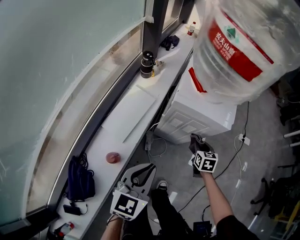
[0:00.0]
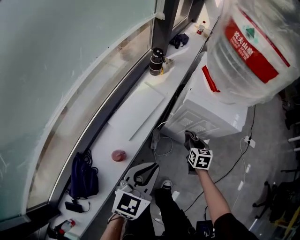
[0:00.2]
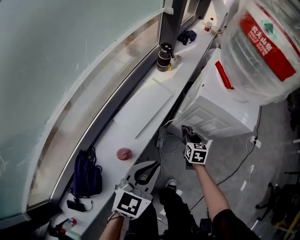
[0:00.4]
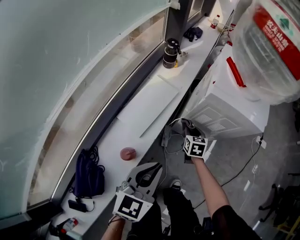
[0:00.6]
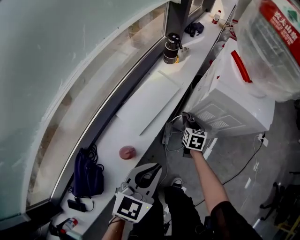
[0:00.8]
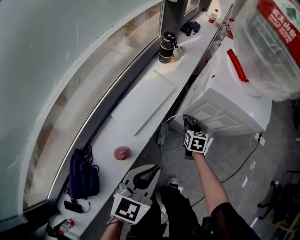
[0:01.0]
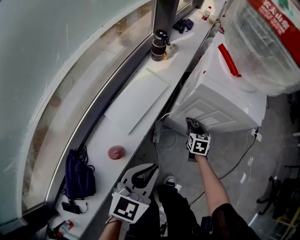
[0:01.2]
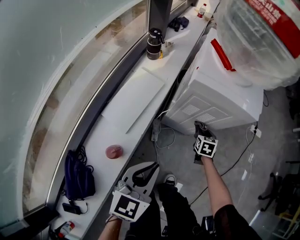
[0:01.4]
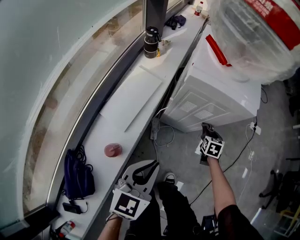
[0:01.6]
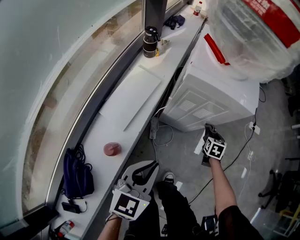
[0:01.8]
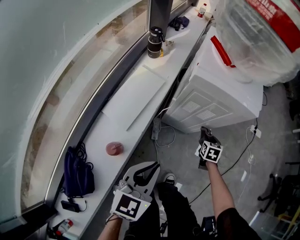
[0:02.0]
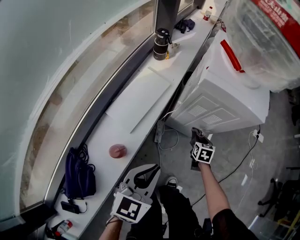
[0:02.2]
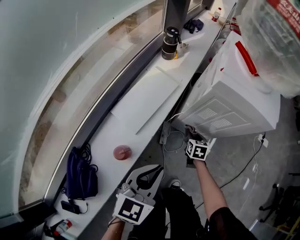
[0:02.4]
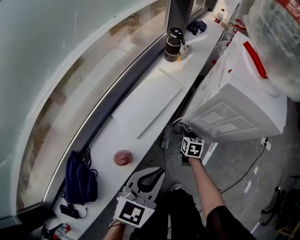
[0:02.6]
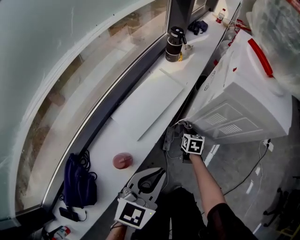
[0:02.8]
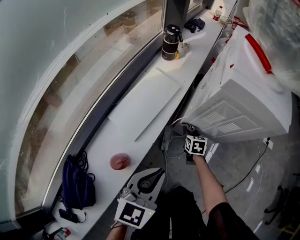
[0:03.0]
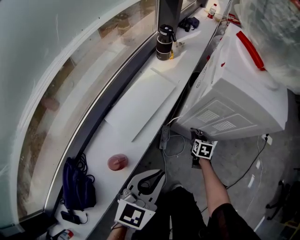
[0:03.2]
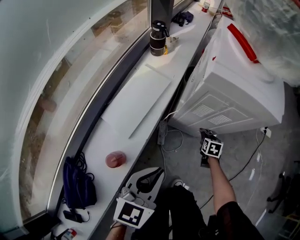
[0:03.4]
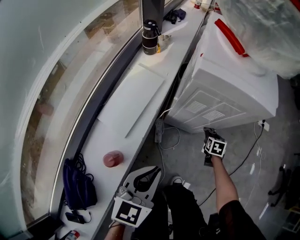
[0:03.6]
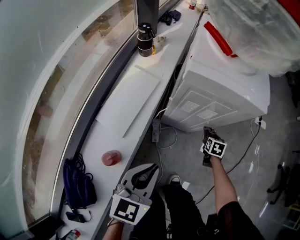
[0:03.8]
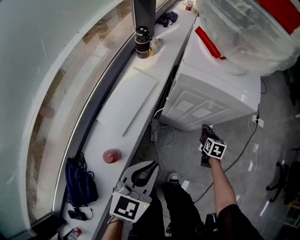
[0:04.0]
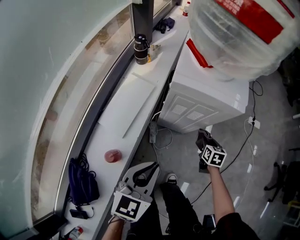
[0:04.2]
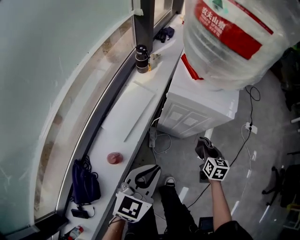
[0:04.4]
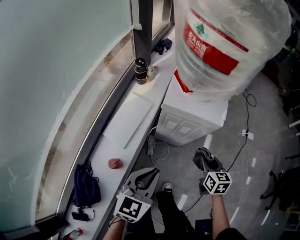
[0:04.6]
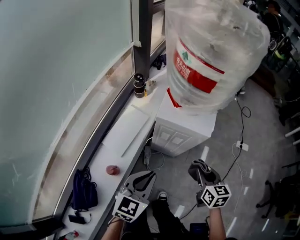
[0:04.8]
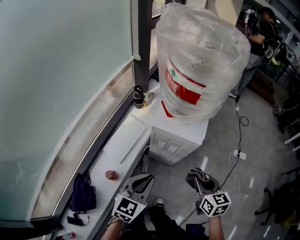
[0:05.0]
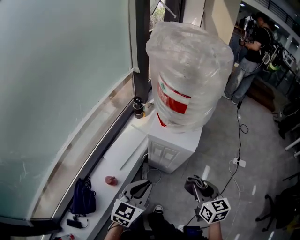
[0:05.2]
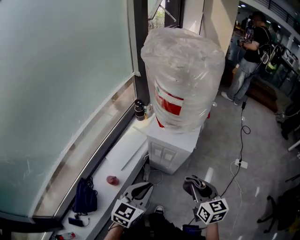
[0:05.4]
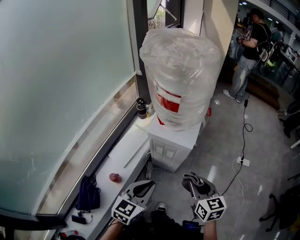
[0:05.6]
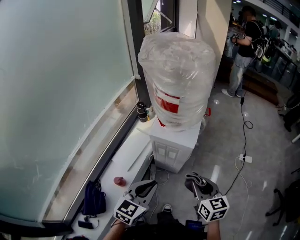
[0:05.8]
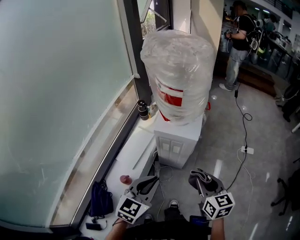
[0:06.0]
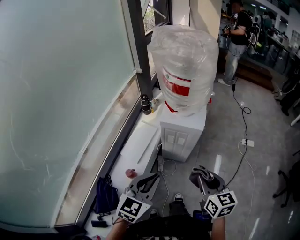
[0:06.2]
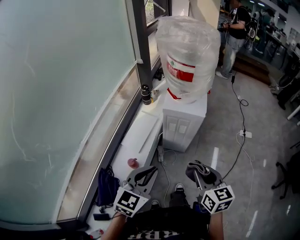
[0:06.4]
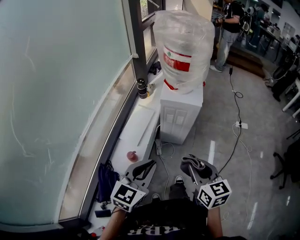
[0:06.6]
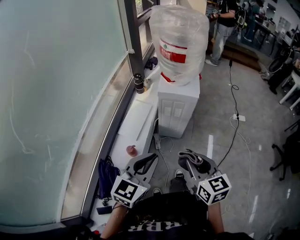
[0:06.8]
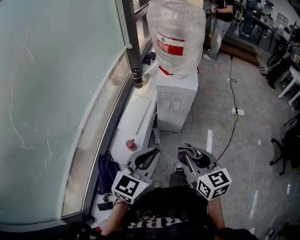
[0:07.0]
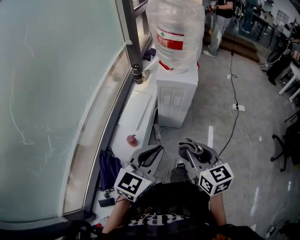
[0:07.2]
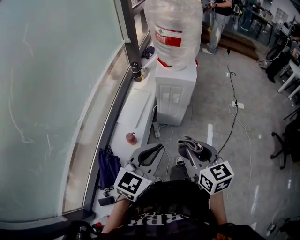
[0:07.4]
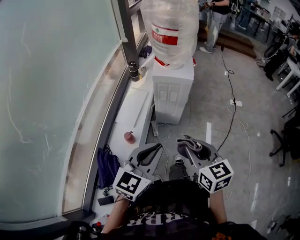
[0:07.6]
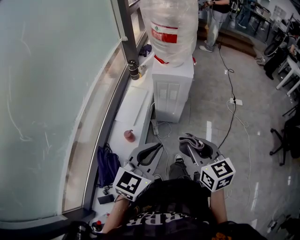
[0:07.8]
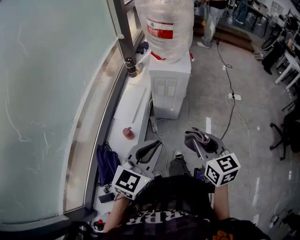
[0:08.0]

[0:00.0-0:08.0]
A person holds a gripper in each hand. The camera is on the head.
0:00.0 to 0:01.6: Both grippers travel together downward, approximately 10 cm. The right gripper goes to the left and returns, some 20 cm each way.
0:01.6 to 0:03.2: The left gripper shifts approximately 10 cm downward, while the right gripper is displaced downward and to the left by some 20 cm.
0:03.2 to 0:04.8: The left gripper is displaced upward by roughly 25 cm, while the right gripper moves upward, approximately 50 cm, and swivels approximately 30 degrees.
0:04.8 to 0:06.4: Both grippers move backward and upward, approximately 25 cm.
0:06.4 to 0:08.0: Both grippers travel together backward, roughly 10 cm.

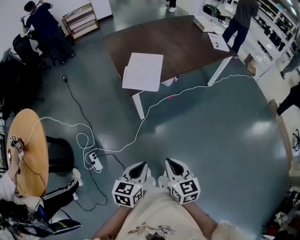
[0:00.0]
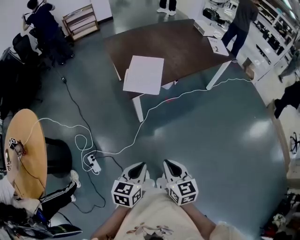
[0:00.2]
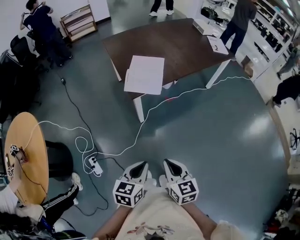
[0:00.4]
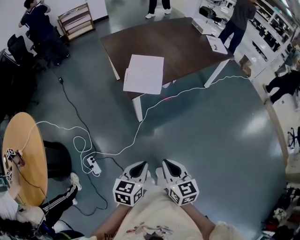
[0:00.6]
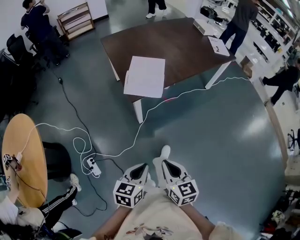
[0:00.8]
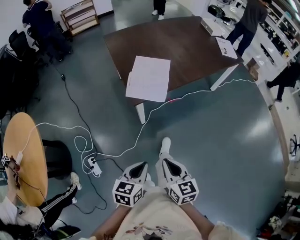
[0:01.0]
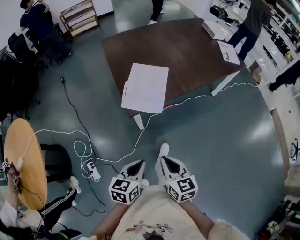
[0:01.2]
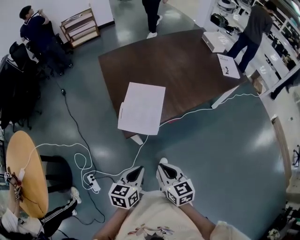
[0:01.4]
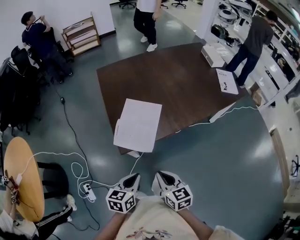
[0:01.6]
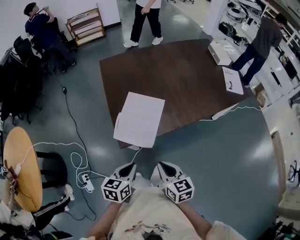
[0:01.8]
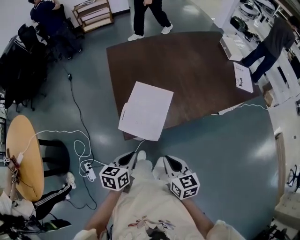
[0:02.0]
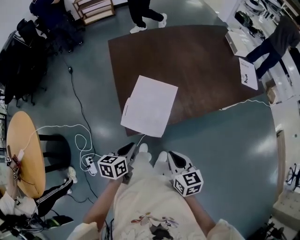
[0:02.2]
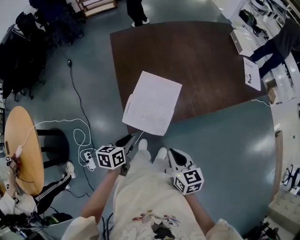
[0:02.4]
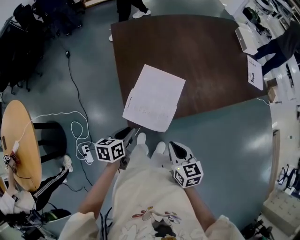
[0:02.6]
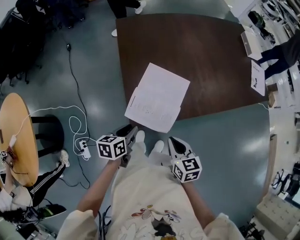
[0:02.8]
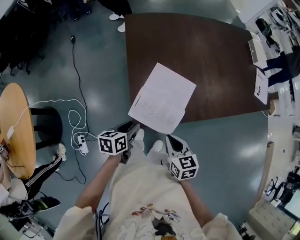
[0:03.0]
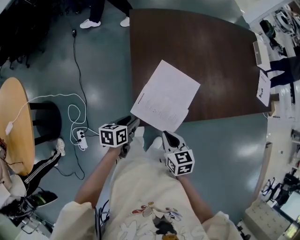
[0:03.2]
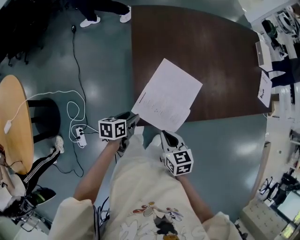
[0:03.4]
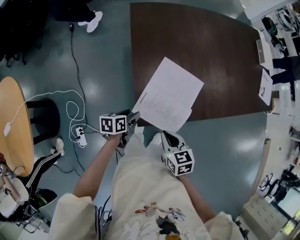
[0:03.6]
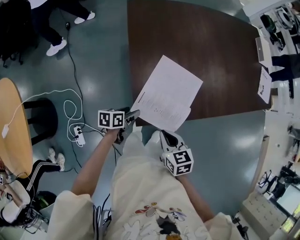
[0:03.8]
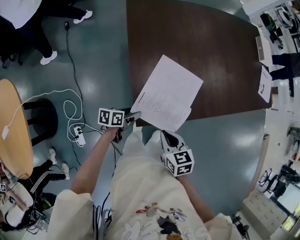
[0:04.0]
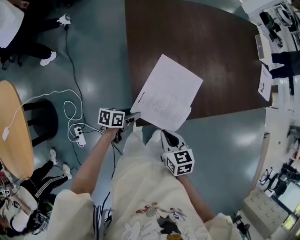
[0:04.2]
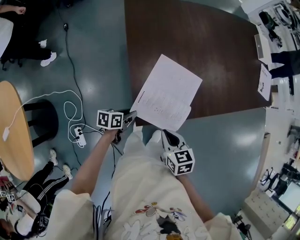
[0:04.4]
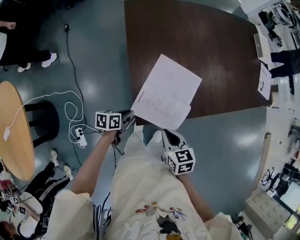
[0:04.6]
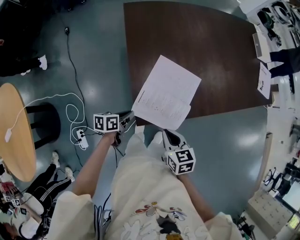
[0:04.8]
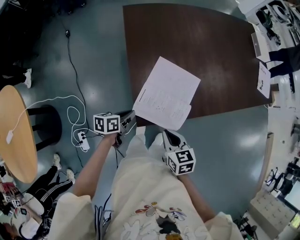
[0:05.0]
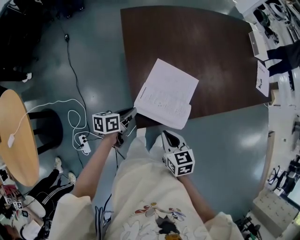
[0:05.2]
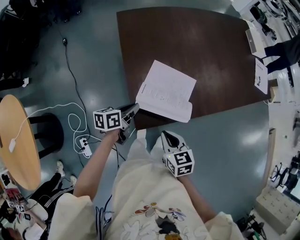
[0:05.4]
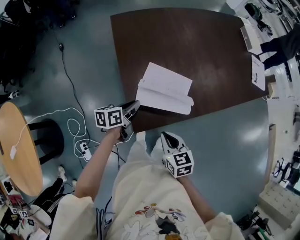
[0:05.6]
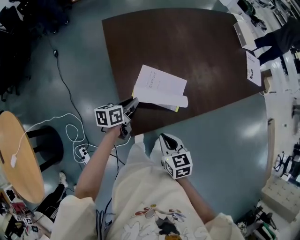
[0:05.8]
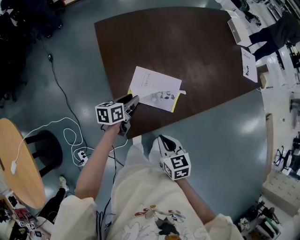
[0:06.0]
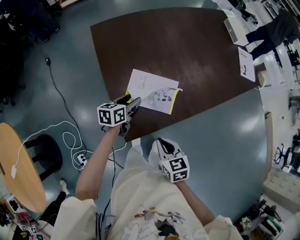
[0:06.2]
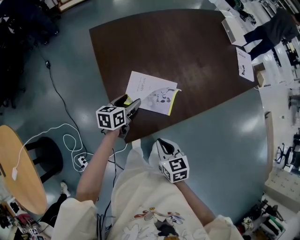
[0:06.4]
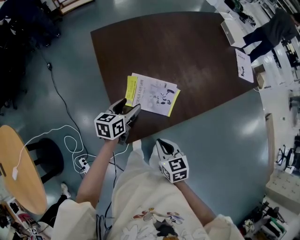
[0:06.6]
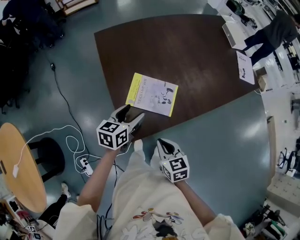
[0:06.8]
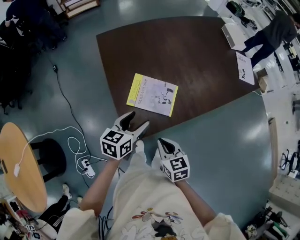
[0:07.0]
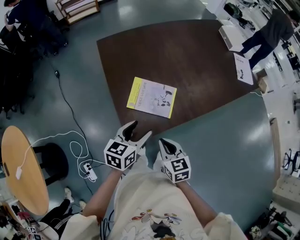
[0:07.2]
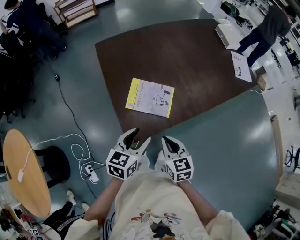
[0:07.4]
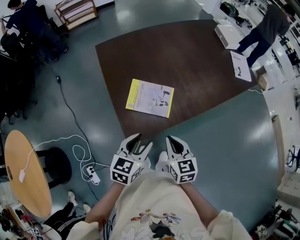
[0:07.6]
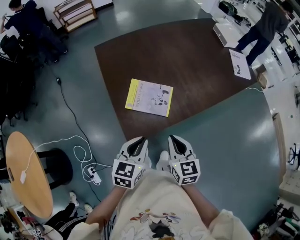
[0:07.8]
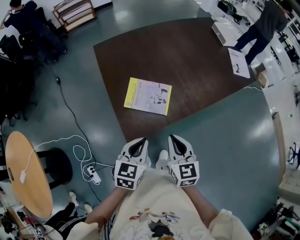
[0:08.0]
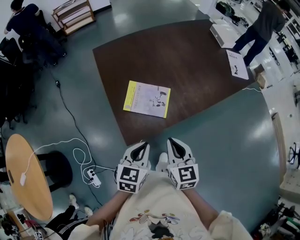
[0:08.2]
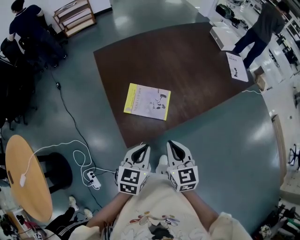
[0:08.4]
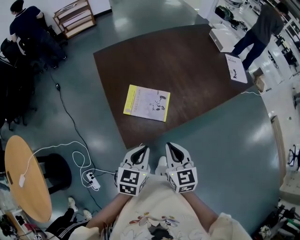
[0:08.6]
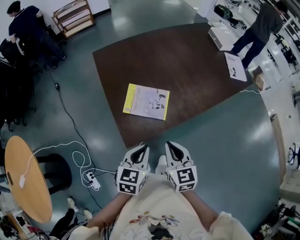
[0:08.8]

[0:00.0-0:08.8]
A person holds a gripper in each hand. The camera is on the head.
0:00.0 to 0:01.4: The two grippers go roughly 30 cm forward.
0:01.4 to 0:03.0: The left gripper moves forward, downward and to the left, approximately 30 cm, changes its angle by some 20 degrees, and opens up, while the right gripper is displaced forward by some 20 cm.
0:03.0 to 0:04.4: The right gripper changes place by approximately 5 cm. Meanwhile the left gripper goes about 10 cm downward, and opens, then closes again.
0:04.4 to 0:05.8: The left gripper is displaced forward and upward by some 15 cm.
0:05.8 to 0:07.4: The left gripper shifts about 20 cm upward, backward and to the right, rotates roughly 30 degrees, and opens its fingers, while the right gripper moves upward and to the right, approximately 10 cm.
0:07.4 to 0:08.8: The left gripper goes some 5 cm backward, and closes up; the right gripper travels upward by some 5 cm.

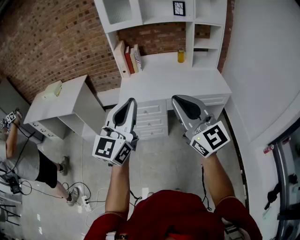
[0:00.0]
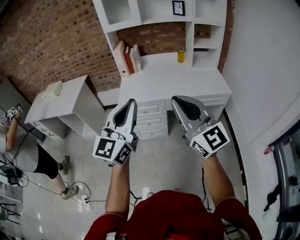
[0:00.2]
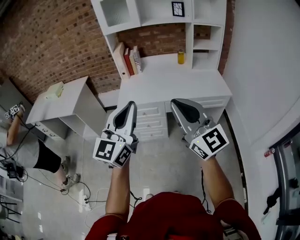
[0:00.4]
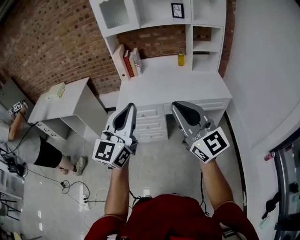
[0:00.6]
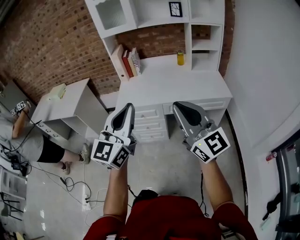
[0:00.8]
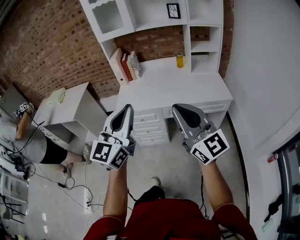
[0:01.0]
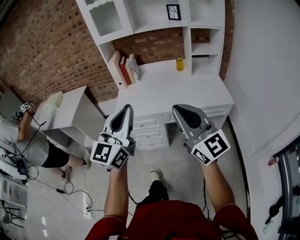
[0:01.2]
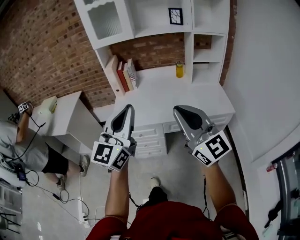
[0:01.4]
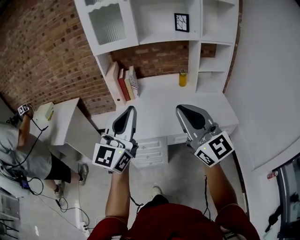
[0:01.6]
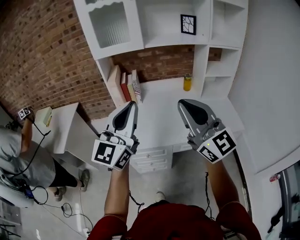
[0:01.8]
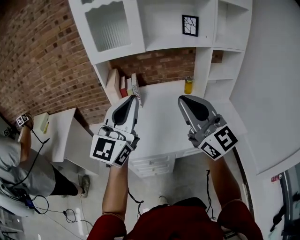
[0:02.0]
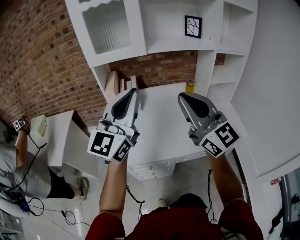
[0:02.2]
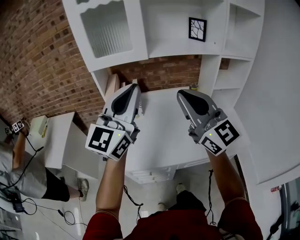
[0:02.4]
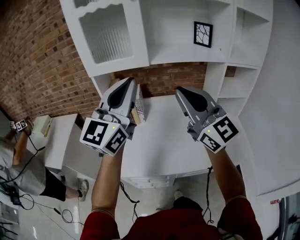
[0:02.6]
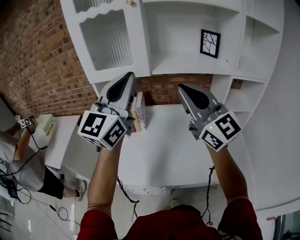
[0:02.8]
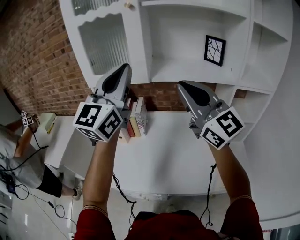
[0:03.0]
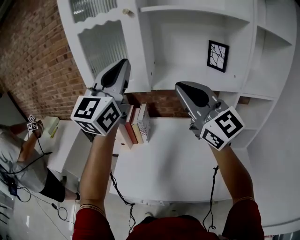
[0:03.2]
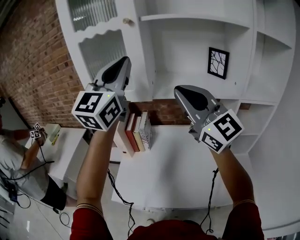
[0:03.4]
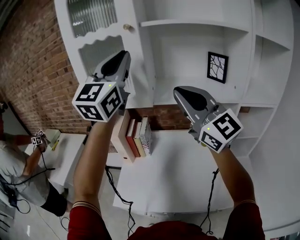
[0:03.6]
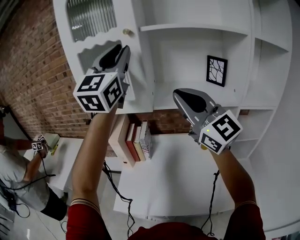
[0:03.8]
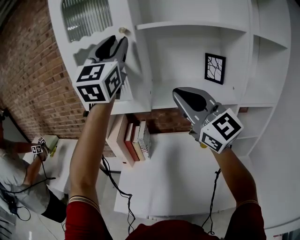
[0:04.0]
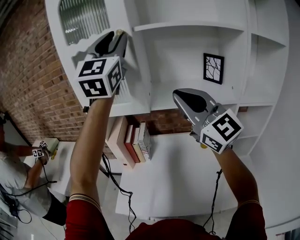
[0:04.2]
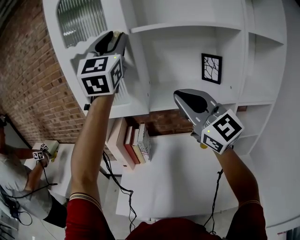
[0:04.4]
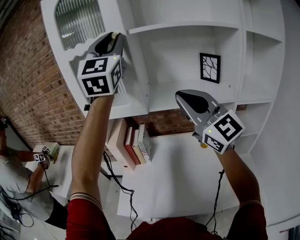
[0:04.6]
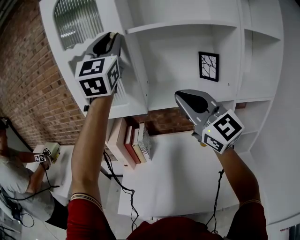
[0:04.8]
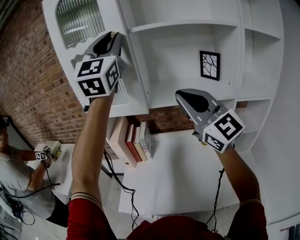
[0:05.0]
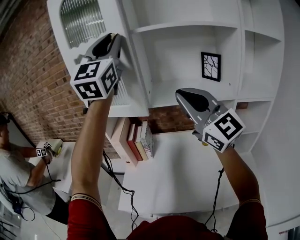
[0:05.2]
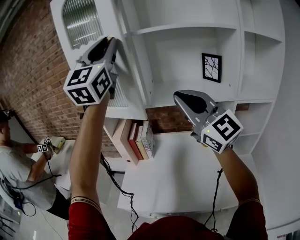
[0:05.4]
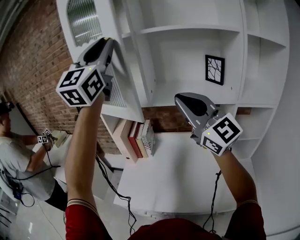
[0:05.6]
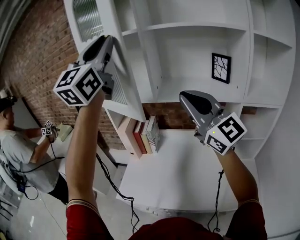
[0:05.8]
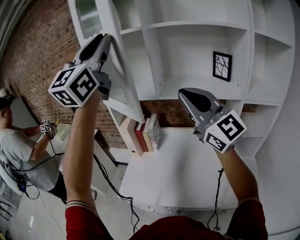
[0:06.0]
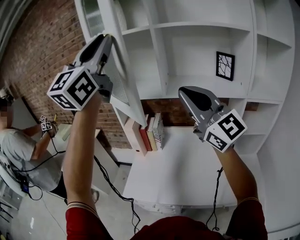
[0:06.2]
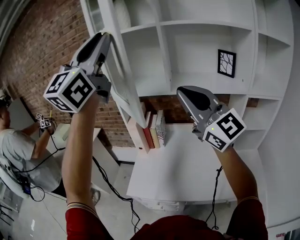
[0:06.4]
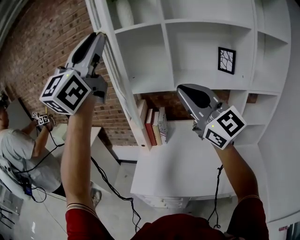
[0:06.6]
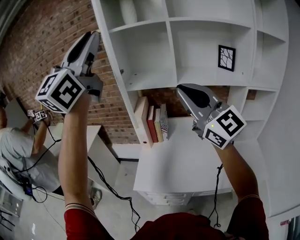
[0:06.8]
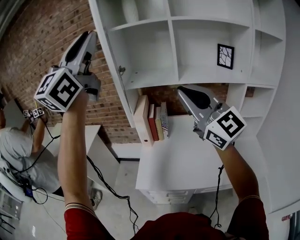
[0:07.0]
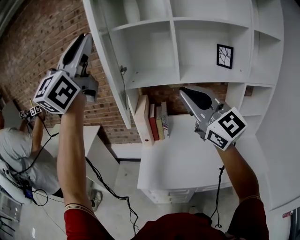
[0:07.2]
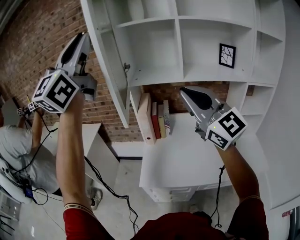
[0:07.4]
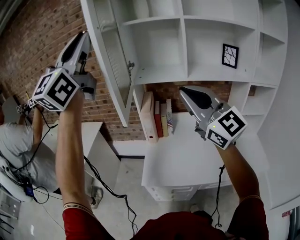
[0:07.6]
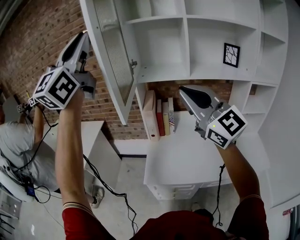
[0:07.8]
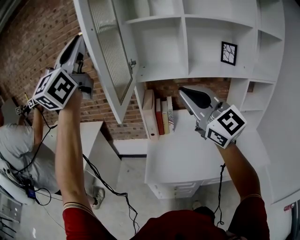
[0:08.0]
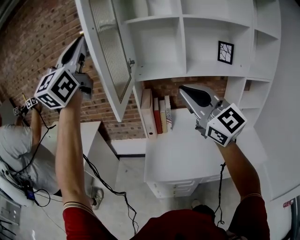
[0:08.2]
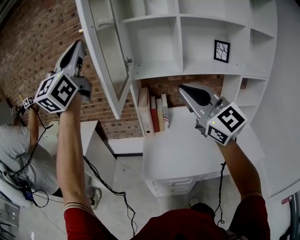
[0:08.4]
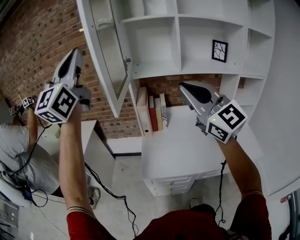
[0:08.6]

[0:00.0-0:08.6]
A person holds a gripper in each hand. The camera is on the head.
0:00.0 to 0:01.4: The grippers both shift forward and to the right by approximately 15 cm.
0:01.4 to 0:02.8: Both grippers are carried forward, about 40 cm.
0:02.8 to 0:04.4: The left gripper travels upward and forward by about 25 cm, changes its angle by roughly 30 degrees, and opens its fingers. Meanwhile the right gripper goes some 10 cm forward and upward.
0:04.4 to 0:05.8: The left gripper shifts about 10 cm backward and to the left.
0:05.8 to 0:07.2: Both grippers travel together to the left and backward, approximately 20 cm.
0:07.2 to 0:08.6: The right gripper goes about 5 cm to the left. The left gripper travels to the left and downward by about 15 cm, and closes.
